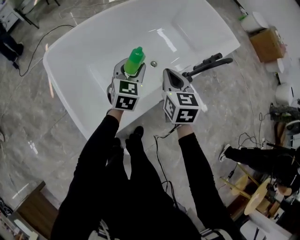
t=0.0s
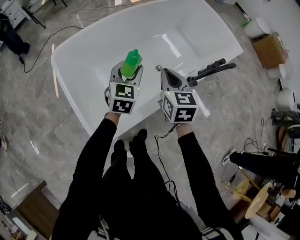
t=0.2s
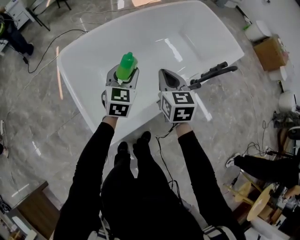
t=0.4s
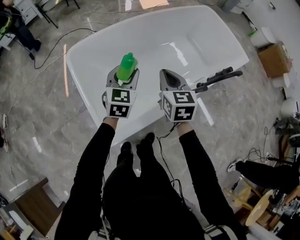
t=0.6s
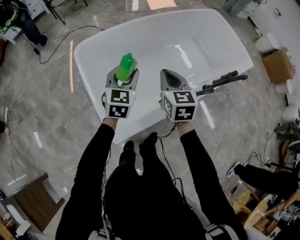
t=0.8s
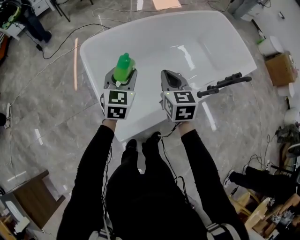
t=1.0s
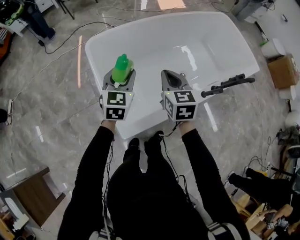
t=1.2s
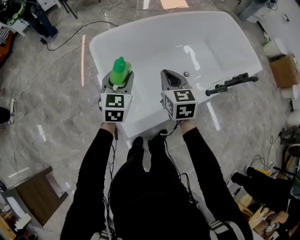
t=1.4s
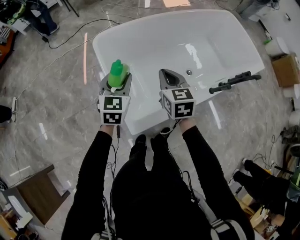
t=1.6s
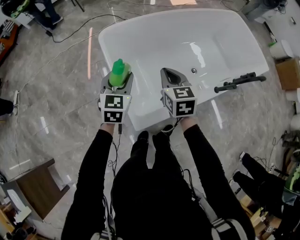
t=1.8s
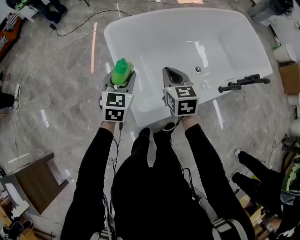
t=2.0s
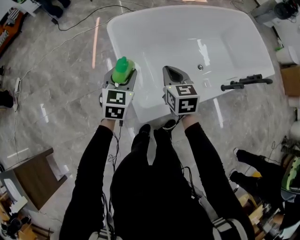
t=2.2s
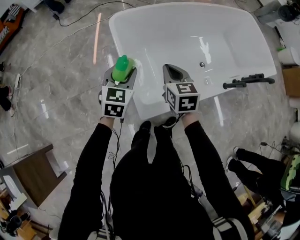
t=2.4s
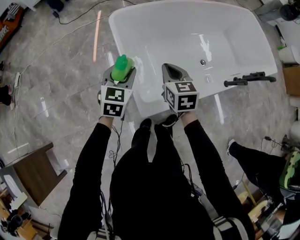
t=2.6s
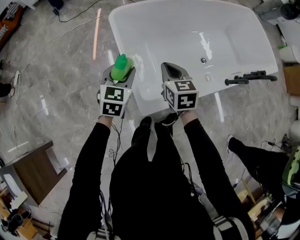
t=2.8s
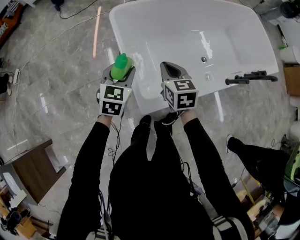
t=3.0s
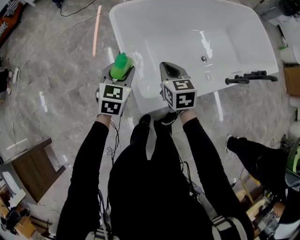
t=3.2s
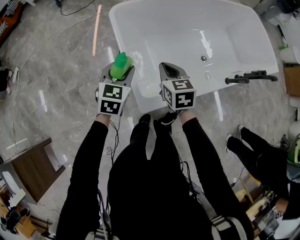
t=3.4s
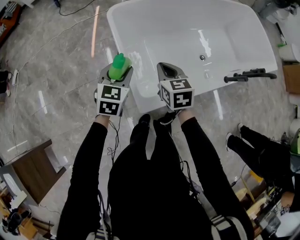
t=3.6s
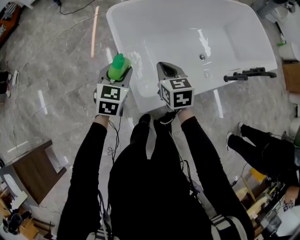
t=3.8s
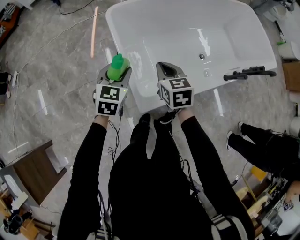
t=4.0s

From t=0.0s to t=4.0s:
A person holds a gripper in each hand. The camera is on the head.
From t=0.0s to t=1.4s: The two grippers go some 25 cm to the left.
From t=1.4s to t=2.6s: The right gripper is displaced to the left and downward by approximately 10 cm. Meanwhile the left gripper heads to the left, backward and downward, covering approximately 10 cm.
From t=2.6s to t=4.0s: The grippers make only small movements.

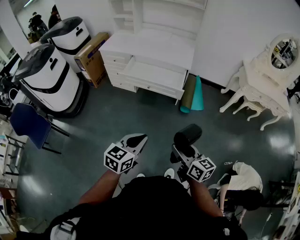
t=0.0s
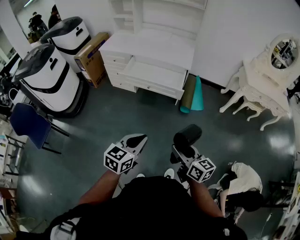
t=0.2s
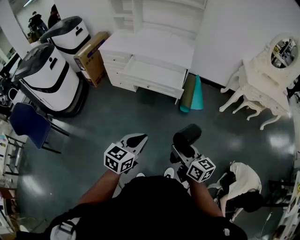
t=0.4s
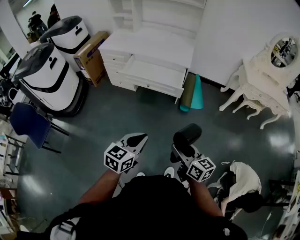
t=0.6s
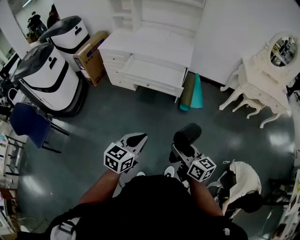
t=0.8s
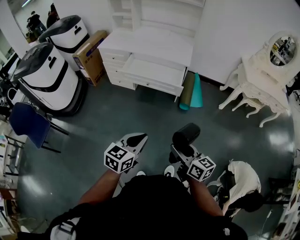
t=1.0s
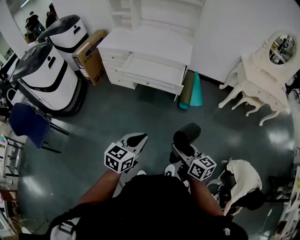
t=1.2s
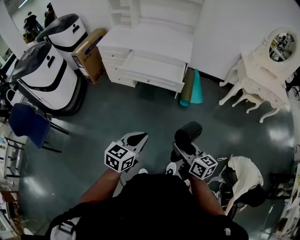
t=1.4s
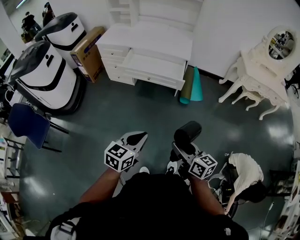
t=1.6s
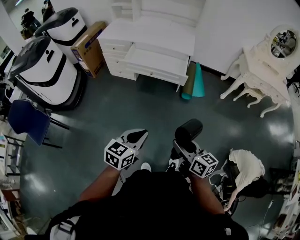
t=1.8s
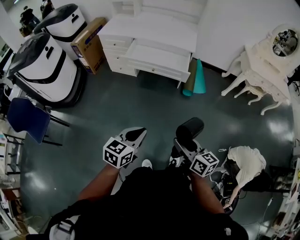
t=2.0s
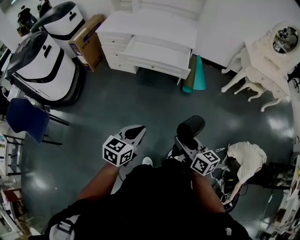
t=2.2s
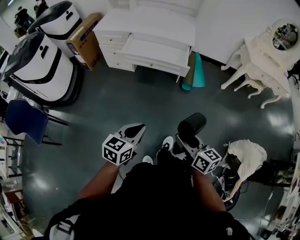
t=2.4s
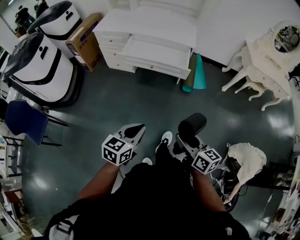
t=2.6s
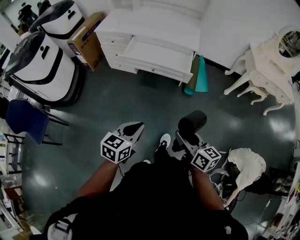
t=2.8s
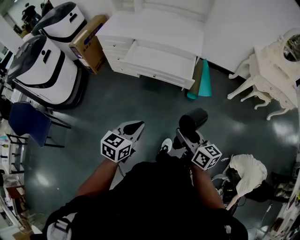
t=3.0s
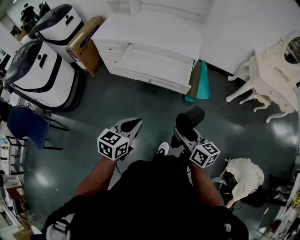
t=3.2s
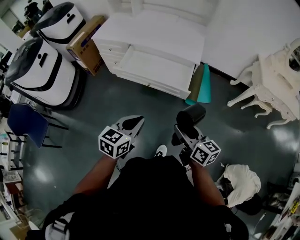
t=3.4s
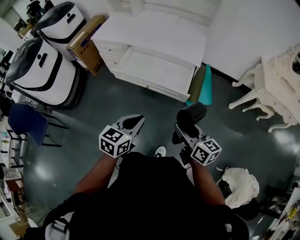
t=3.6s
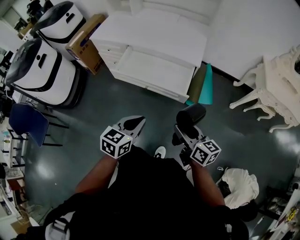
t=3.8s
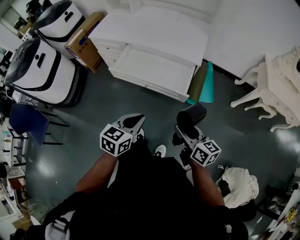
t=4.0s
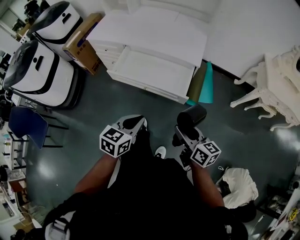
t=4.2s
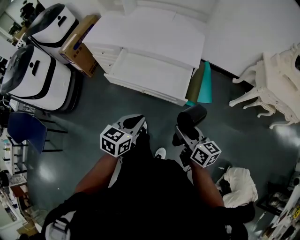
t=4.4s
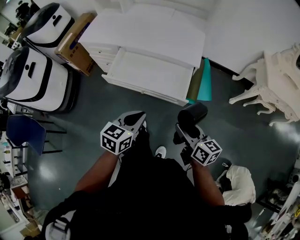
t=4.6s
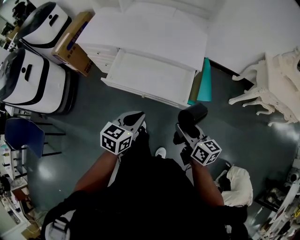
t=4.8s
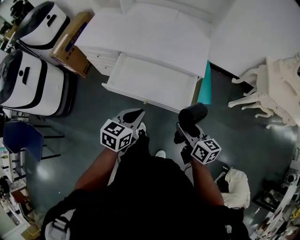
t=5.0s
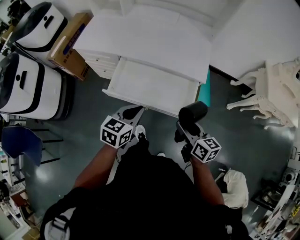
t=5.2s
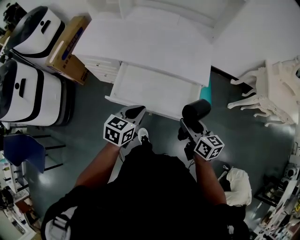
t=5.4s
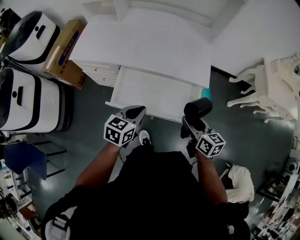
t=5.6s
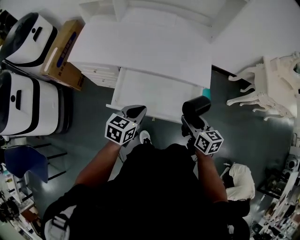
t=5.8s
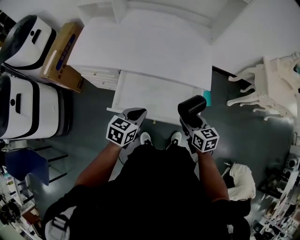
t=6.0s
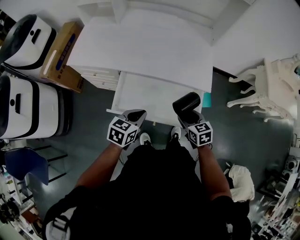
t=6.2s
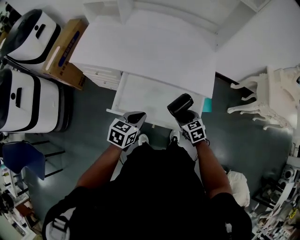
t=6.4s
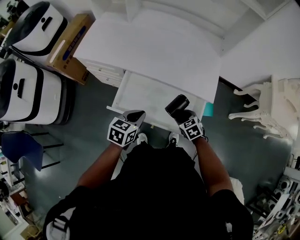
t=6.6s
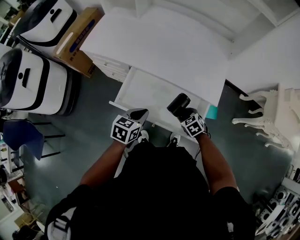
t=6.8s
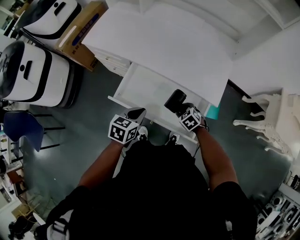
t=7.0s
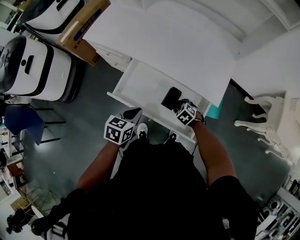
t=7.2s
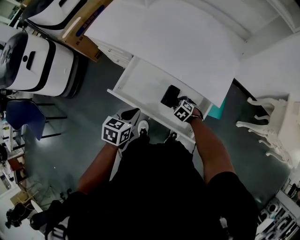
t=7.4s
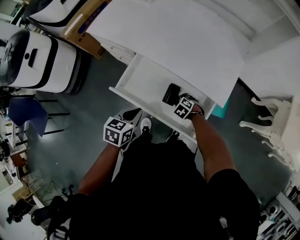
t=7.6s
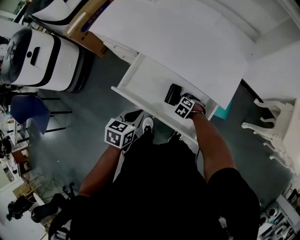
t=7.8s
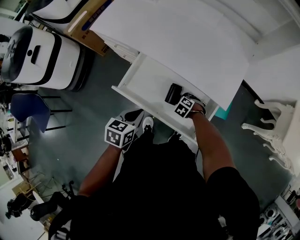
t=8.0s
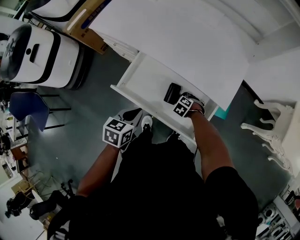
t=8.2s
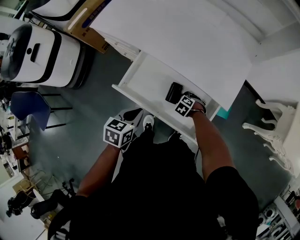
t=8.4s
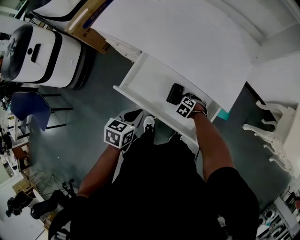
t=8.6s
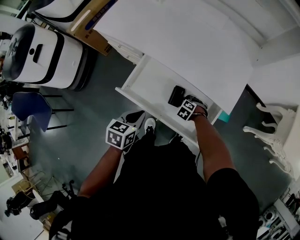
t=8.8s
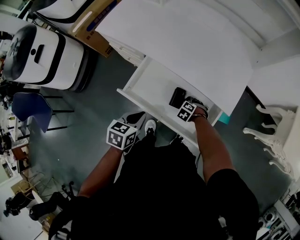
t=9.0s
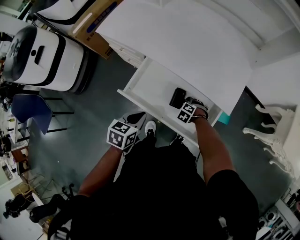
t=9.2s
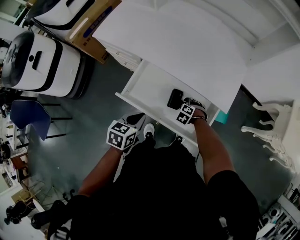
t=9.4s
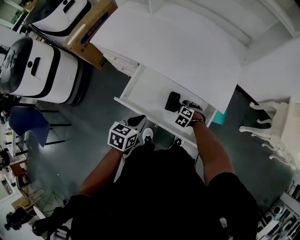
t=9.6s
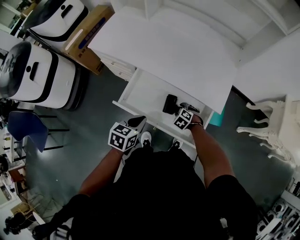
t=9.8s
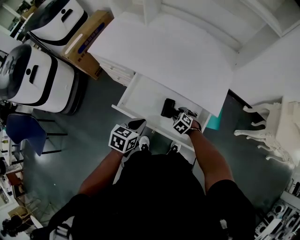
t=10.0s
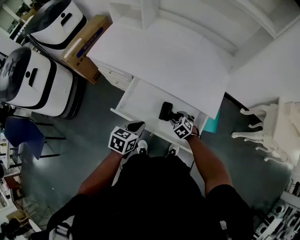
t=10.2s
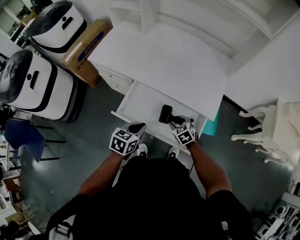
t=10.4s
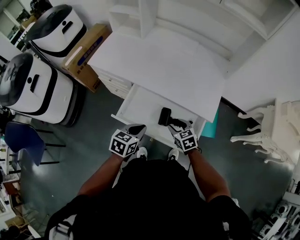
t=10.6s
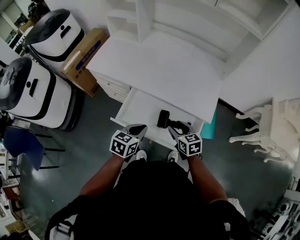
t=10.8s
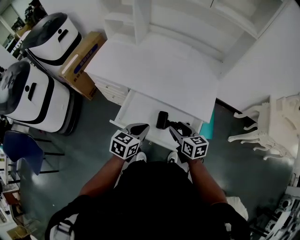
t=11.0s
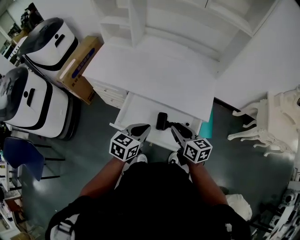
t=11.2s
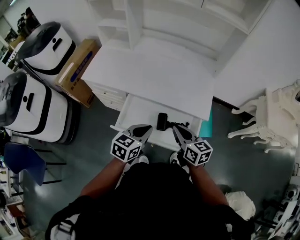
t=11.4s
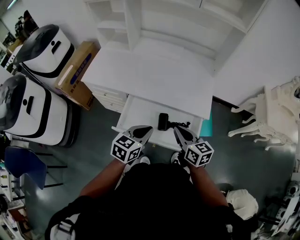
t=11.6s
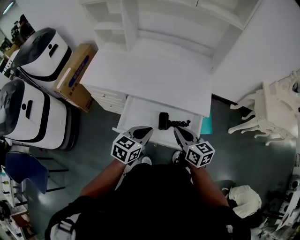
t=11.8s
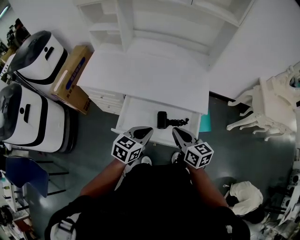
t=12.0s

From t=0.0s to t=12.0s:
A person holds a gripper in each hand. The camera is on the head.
From t=0.0s to t=1.6s: The right gripper changes place by approximately 5 cm.
From t=1.6s to t=3.0s: The two grippers go approximately 15 cm forward.
From t=3.0s to t=4.4s: Both grippers move forward, roughly 20 cm.
From t=4.4s to t=6.0s: Both grippers move forward and to the left, some 30 cm. The right gripper swivels some 30 degrees.
From t=6.0s to t=7.6s: The left gripper turns by some 30 degrees; the right gripper goes about 25 cm downward, and points its fingers roughly 40 degrees further downward.
From t=7.6s to t=9.0s: The grippers stay close to where they were, moving slightly.
From t=9.0s to t=10.4s: The right gripper is displaced upward by roughly 15 cm, and rotates approximately 40 degrees.
From t=10.4s to t=12.0s: The left gripper shifts some 10 cm upward, and swivels some 20 degrees; the right gripper goes about 20 cm upward, angles its fingers upward, by roughly 40 degrees, and closes.

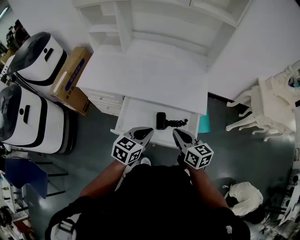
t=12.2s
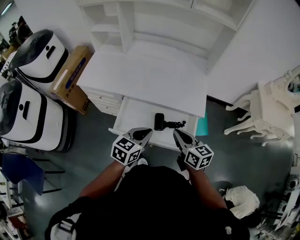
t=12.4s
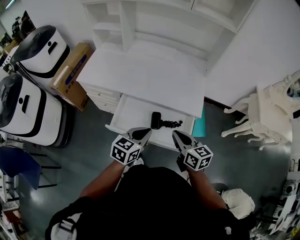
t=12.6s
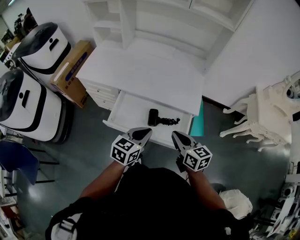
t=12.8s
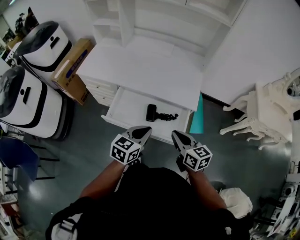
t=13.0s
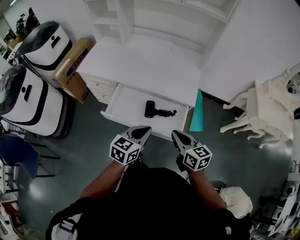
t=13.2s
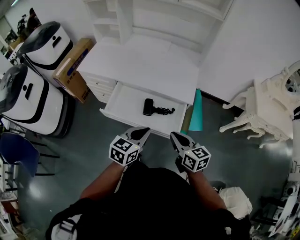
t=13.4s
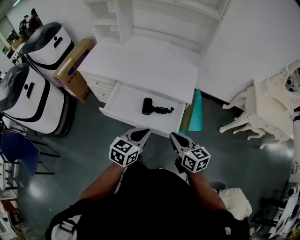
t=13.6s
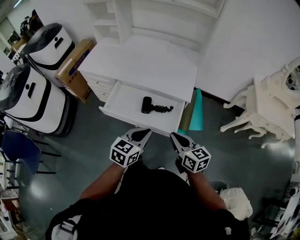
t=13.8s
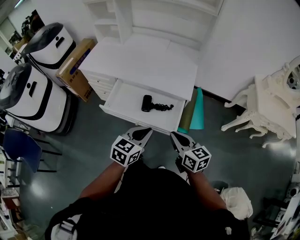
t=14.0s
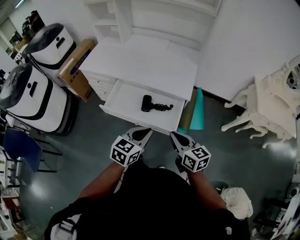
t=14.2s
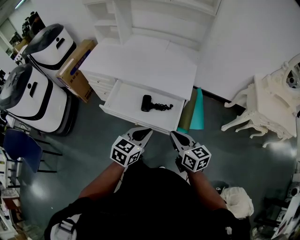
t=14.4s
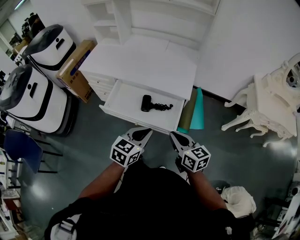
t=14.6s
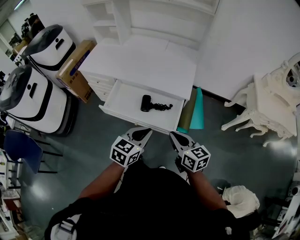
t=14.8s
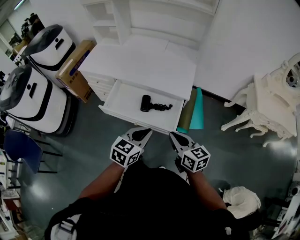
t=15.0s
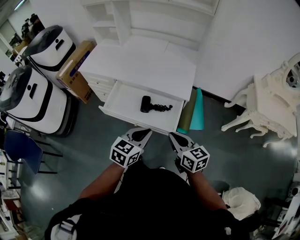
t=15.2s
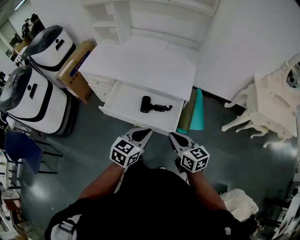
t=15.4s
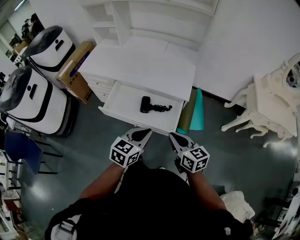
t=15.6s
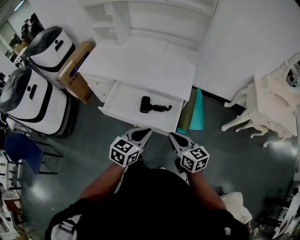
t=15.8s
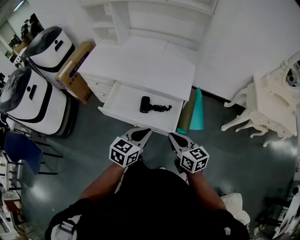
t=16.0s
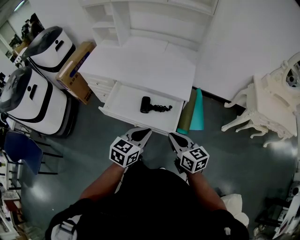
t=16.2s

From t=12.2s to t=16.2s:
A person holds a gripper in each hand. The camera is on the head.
From t=12.2s to t=13.6s: The two grippers go roughly 15 cm backward and to the right.
From t=13.6s to t=14.8s: There are only small adjustments of the grippers.
From t=14.8s to t=16.2s: Both grippers stay put.

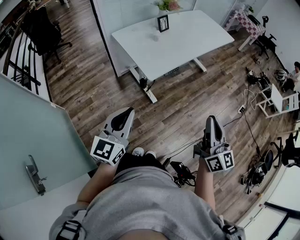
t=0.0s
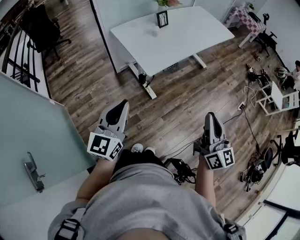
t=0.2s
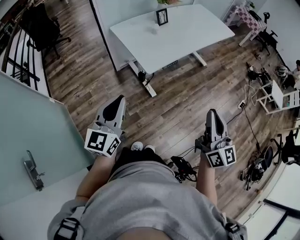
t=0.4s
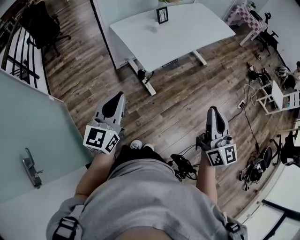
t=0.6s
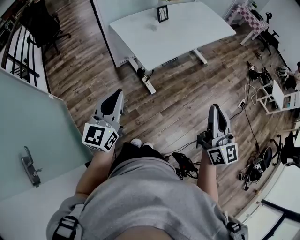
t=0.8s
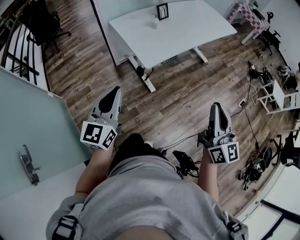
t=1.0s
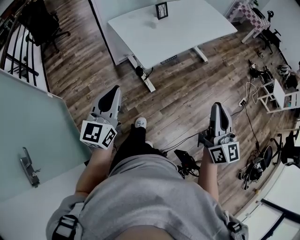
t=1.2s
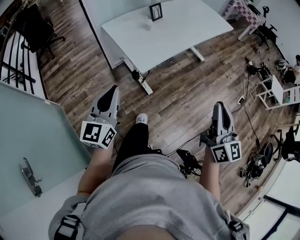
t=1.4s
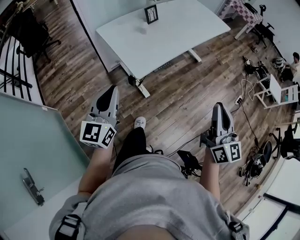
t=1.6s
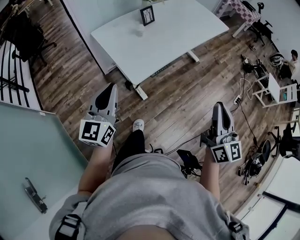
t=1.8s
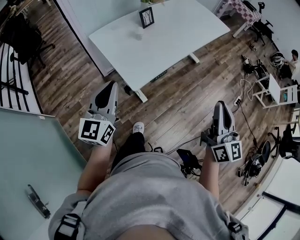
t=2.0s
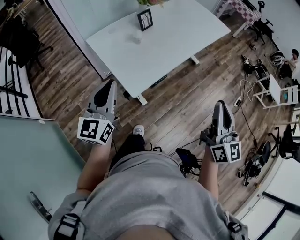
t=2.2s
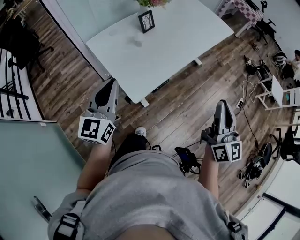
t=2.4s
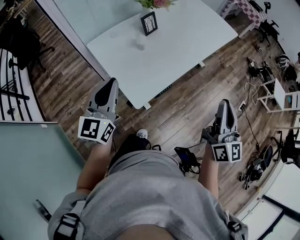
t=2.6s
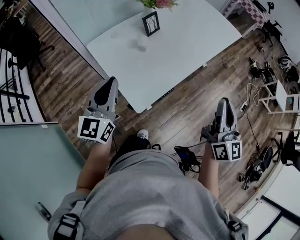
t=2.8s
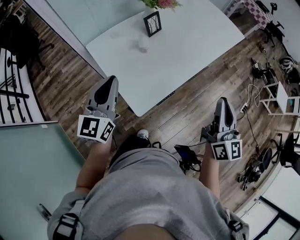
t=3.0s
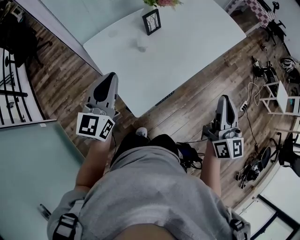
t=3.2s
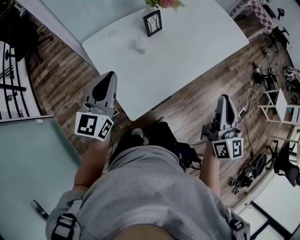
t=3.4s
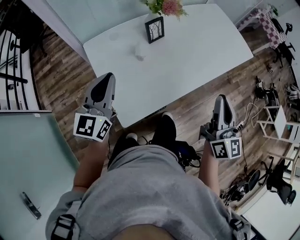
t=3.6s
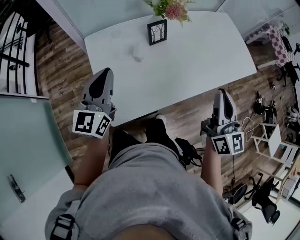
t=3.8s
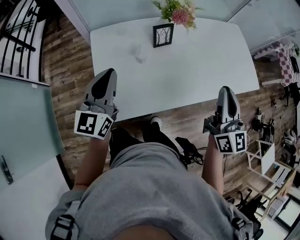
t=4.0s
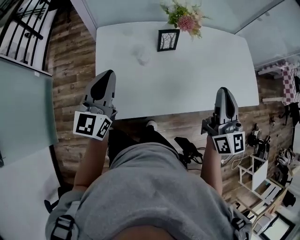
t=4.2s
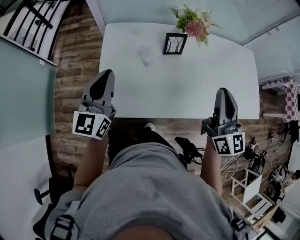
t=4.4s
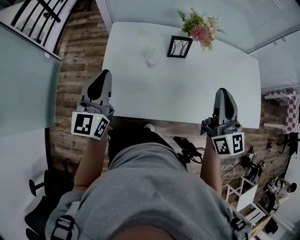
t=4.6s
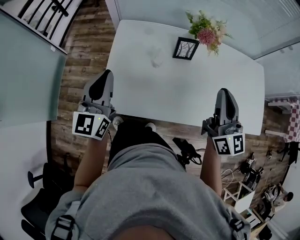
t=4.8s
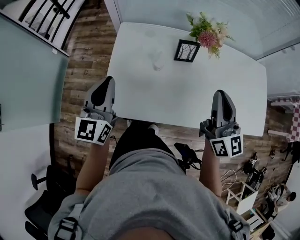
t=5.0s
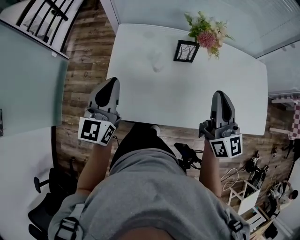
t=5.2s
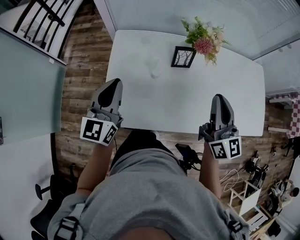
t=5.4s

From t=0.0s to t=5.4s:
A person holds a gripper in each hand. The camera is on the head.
From t=0.0s to t=1.4s: The left gripper travels forward by roughly 10 cm; the right gripper heads forward, covering about 5 cm.
From t=1.4s to t=2.8s: The grippers both shift forward by approximately 30 cm.
From t=2.8s to t=4.0s: The left gripper moves approximately 15 cm, and changes its angle by some 20 degrees; the right gripper moves some 30 cm, and swivels approximately 30 degrees.
From t=4.0s to t=5.4s: The right gripper travels forward by approximately 10 cm, and rotates approximately 20 degrees.
